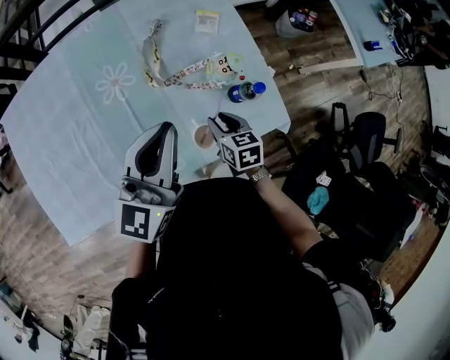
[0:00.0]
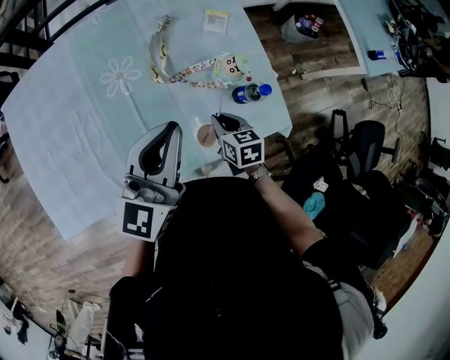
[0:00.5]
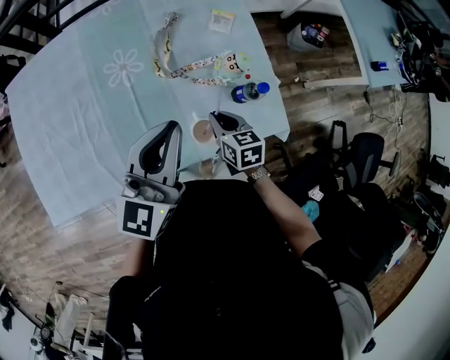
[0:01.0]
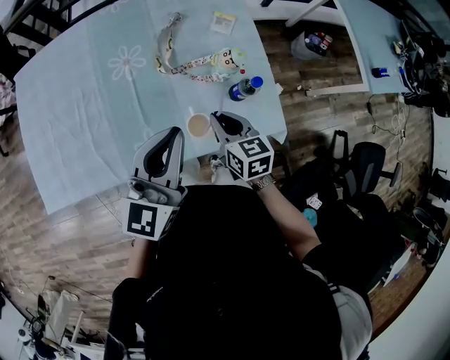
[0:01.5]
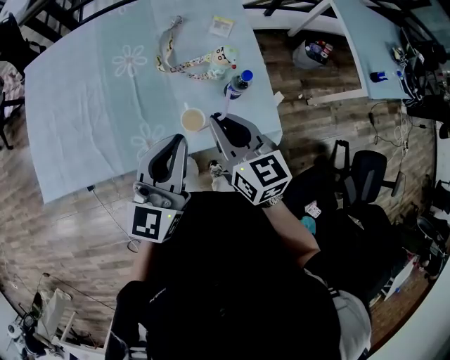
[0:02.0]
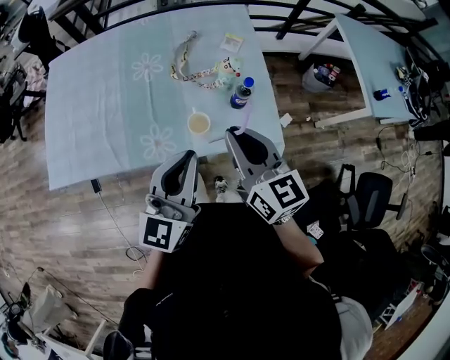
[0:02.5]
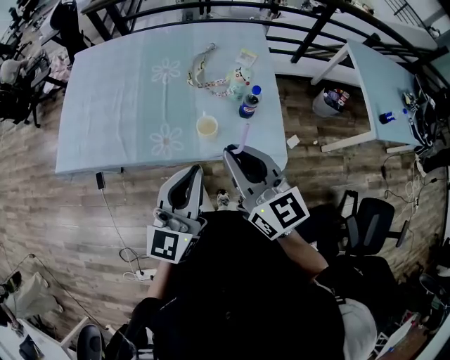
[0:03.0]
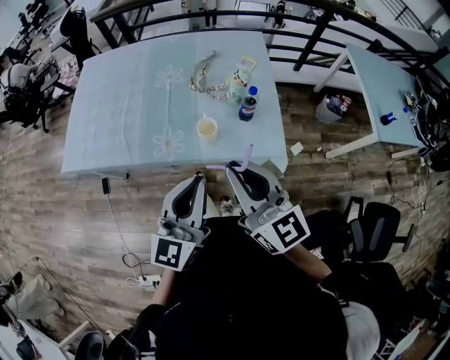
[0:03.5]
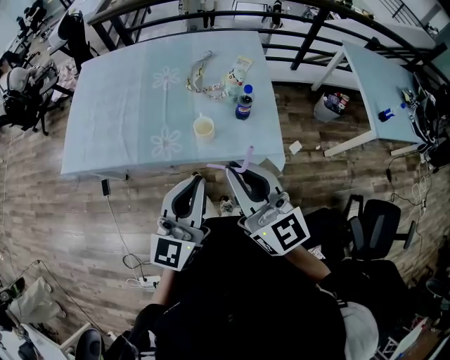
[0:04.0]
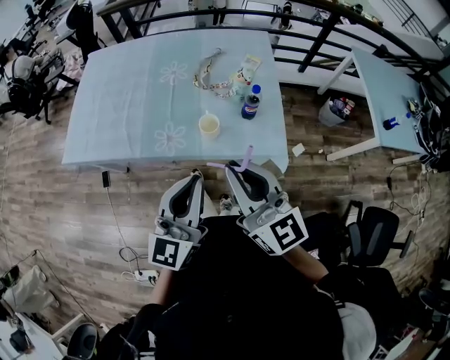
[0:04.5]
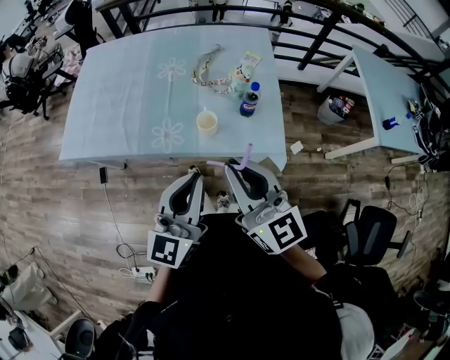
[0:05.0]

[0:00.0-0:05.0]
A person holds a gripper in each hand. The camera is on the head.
0:00.0 to 0:02.5: The right gripper heads upward and backward, covering about 30 cm, tilts its fingers some 40 degrees upward, and closes up; the left gripper goes some 20 cm backward.
0:02.5 to 0:05.0: Both grippers travel together backward, some 15 cm. The right gripper turns by approximately 20 degrees.

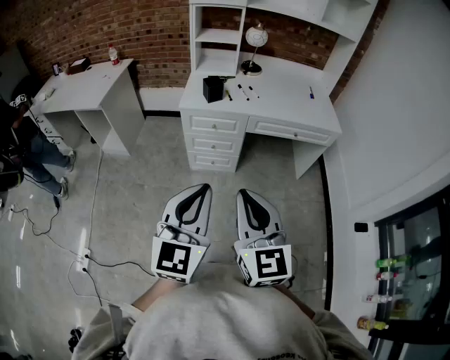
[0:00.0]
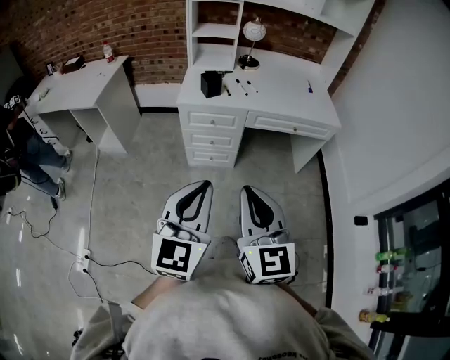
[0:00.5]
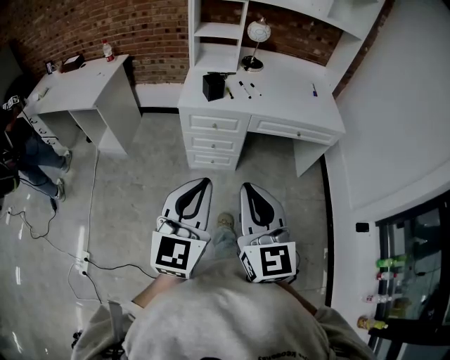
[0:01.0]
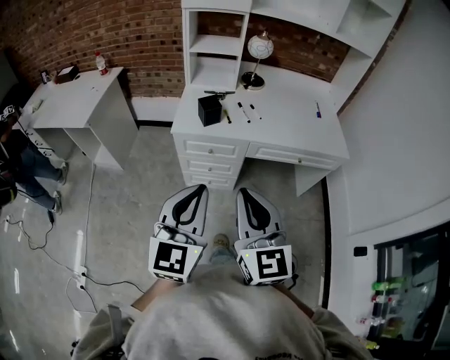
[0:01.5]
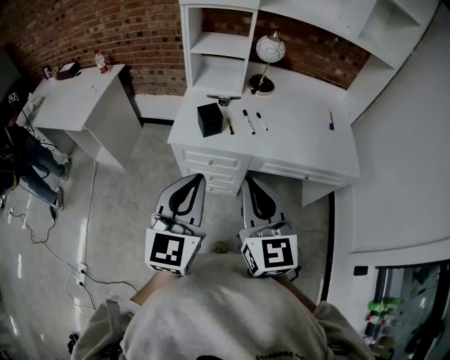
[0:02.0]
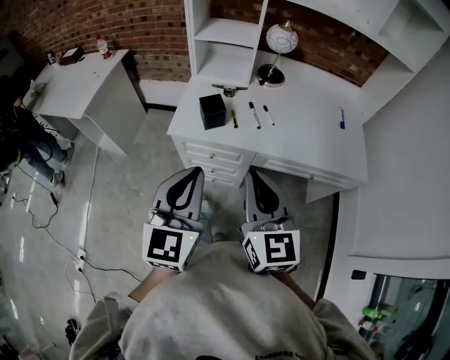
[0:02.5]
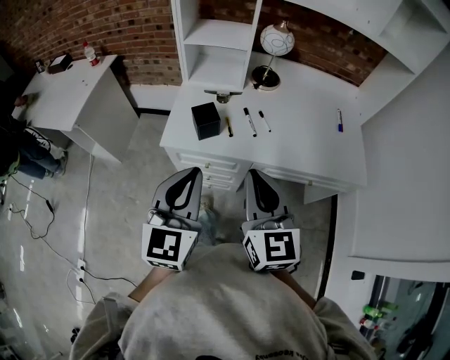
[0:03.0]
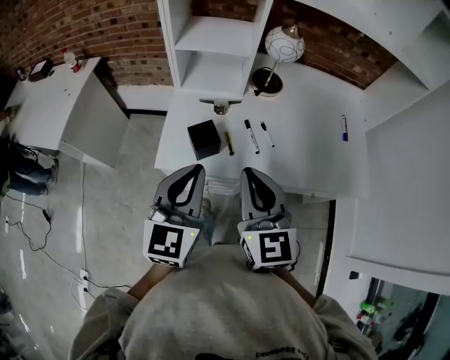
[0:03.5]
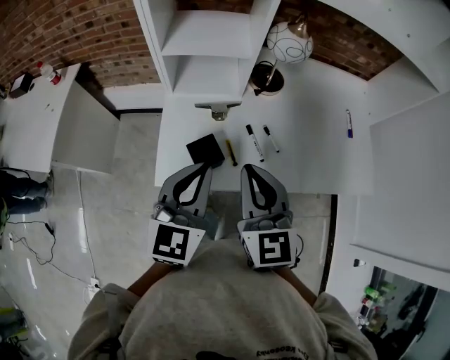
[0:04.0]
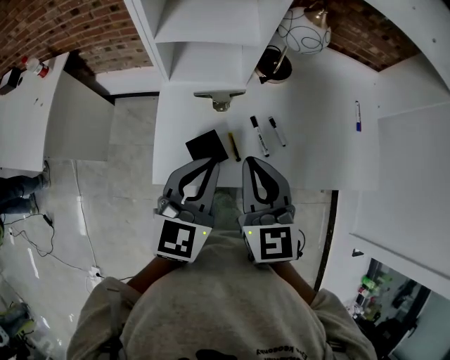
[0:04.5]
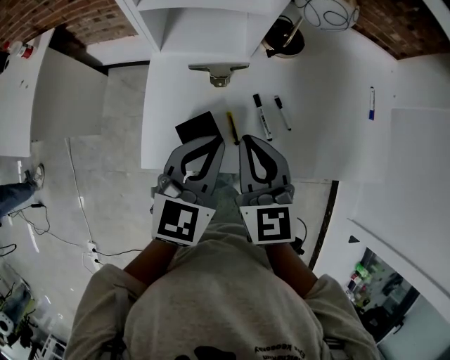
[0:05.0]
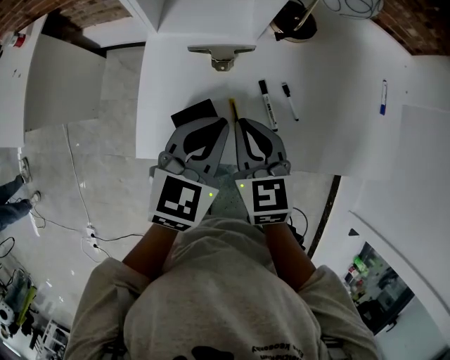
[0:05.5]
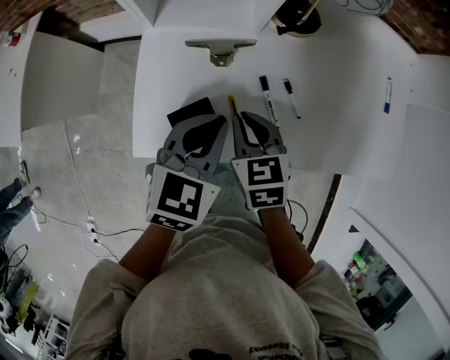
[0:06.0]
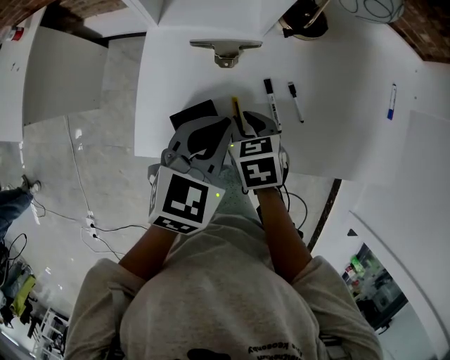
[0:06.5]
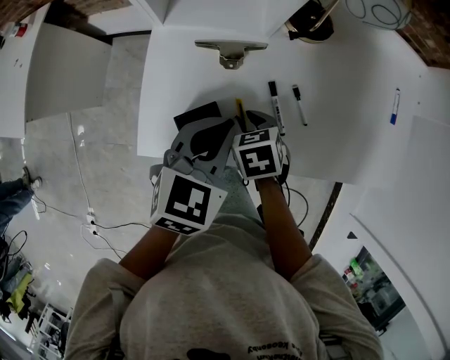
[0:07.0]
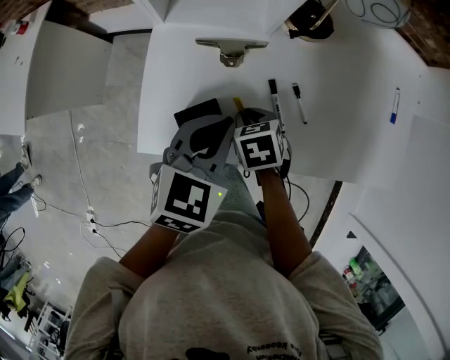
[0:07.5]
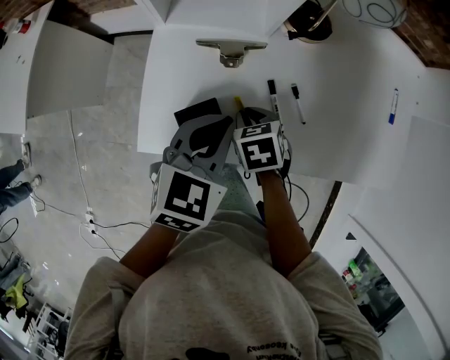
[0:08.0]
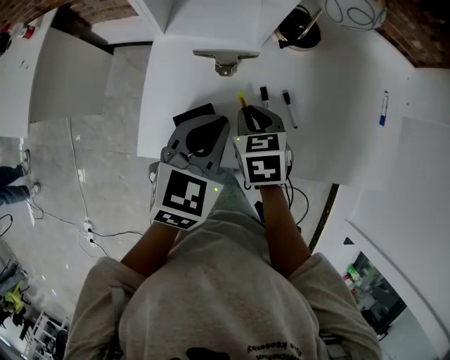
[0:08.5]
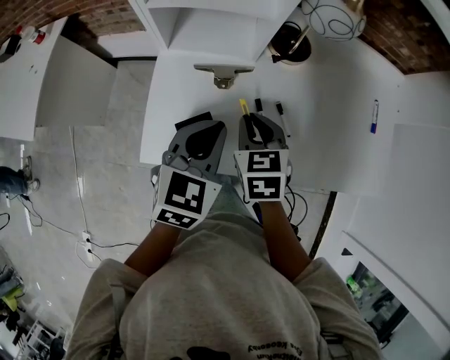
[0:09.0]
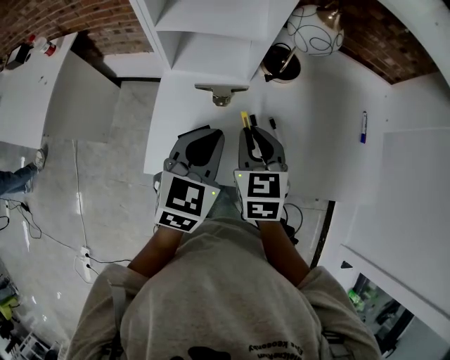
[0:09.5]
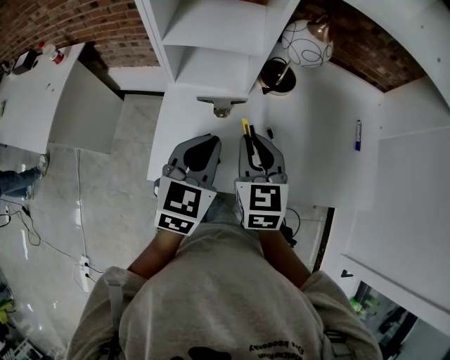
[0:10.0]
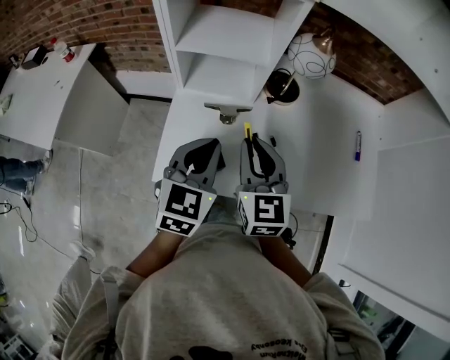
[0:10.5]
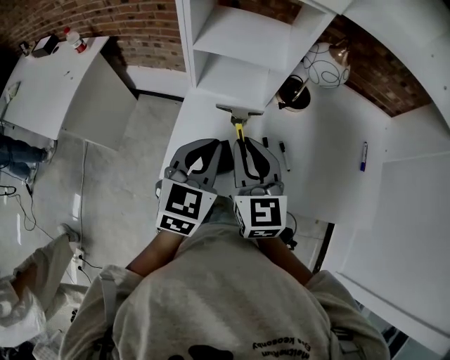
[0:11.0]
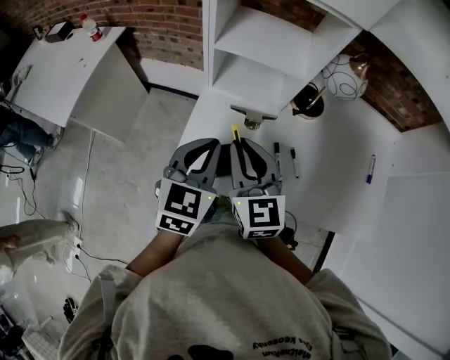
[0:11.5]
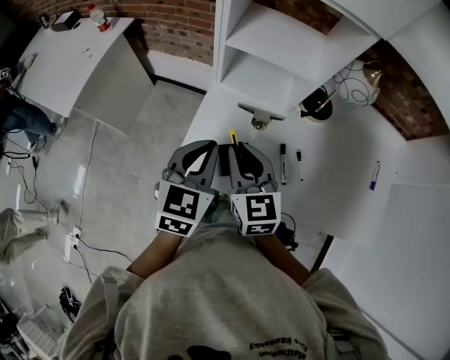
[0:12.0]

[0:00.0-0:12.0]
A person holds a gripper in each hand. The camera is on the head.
0:00.0 to 0:02.0: Both grippers move forward, roughly 35 cm.
0:02.0 to 0:04.0: Both grippers move forward, some 30 cm.
0:04.0 to 0:06.0: The grippers both shift downward and forward by some 20 cm. The left gripper rotates some 20 degrees, while the right gripper points its fingers roughly 30 degrees further downward.
0:06.0 to 0:08.0: The right gripper heads downward, covering roughly 5 cm, and turns by about 20 degrees.
0:08.0 to 0:10.0: The right gripper is displaced upward by approximately 20 cm, and tilts its fingers some 40 degrees upward, while the left gripper heads upward, covering approximately 10 cm.
0:10.0 to 0:12.0: The two grippers go roughly 10 cm to the left. The right gripper changes its angle by roughly 20 degrees.

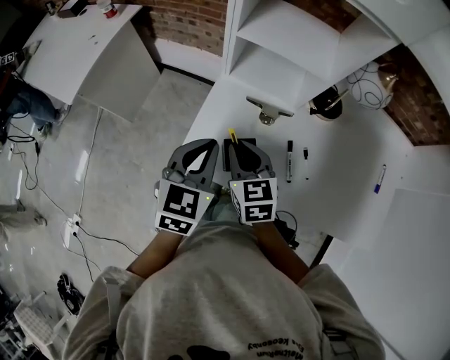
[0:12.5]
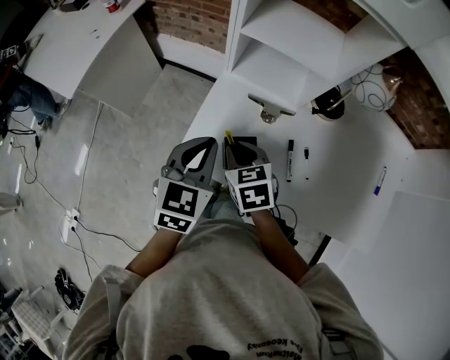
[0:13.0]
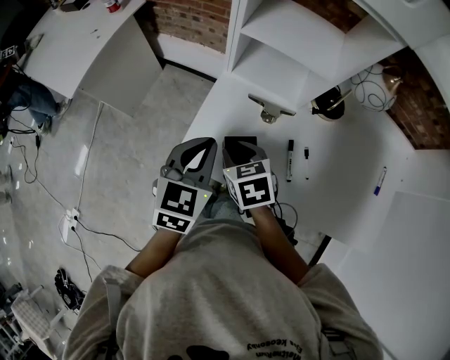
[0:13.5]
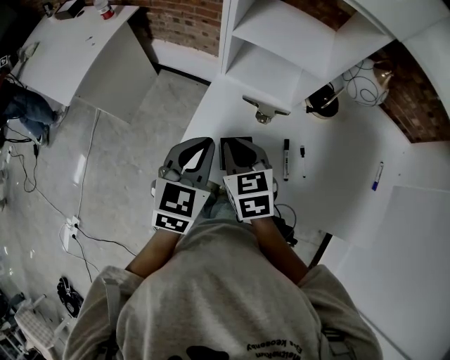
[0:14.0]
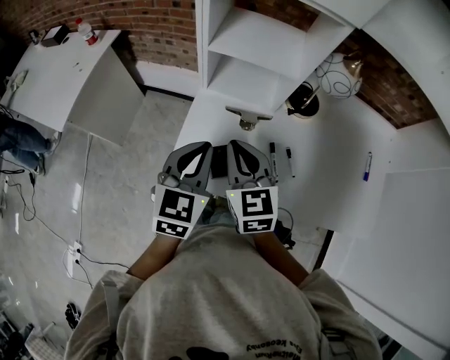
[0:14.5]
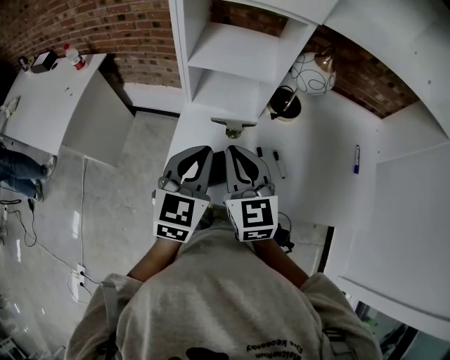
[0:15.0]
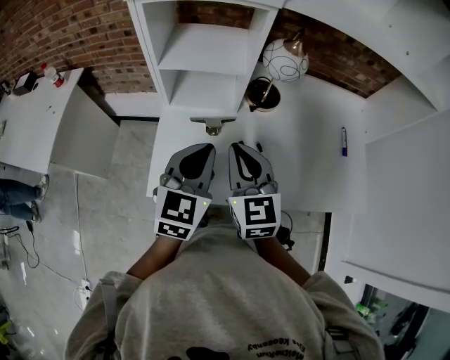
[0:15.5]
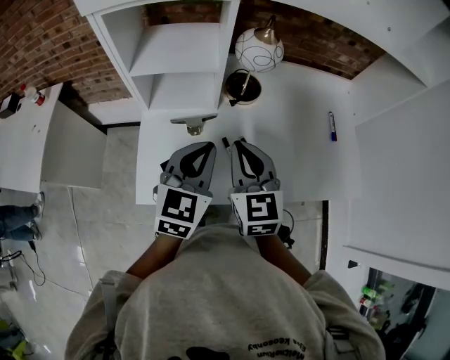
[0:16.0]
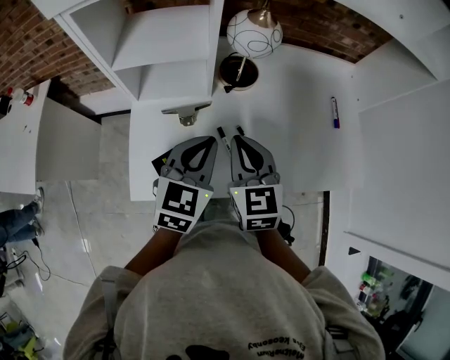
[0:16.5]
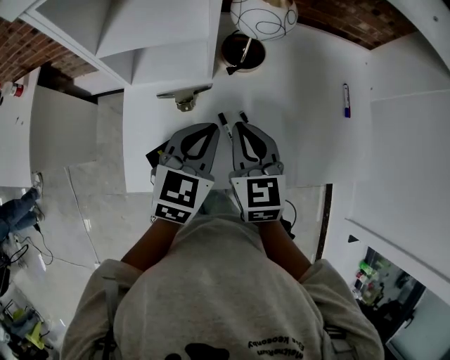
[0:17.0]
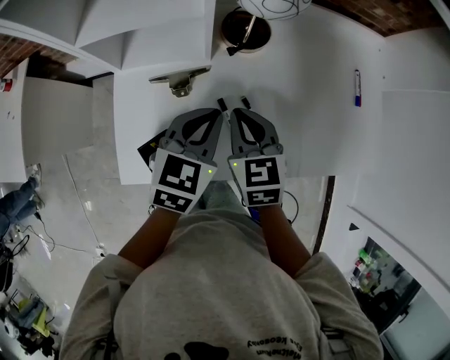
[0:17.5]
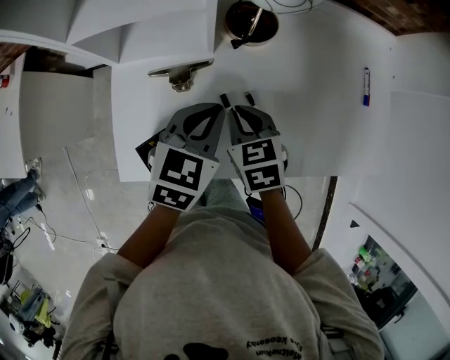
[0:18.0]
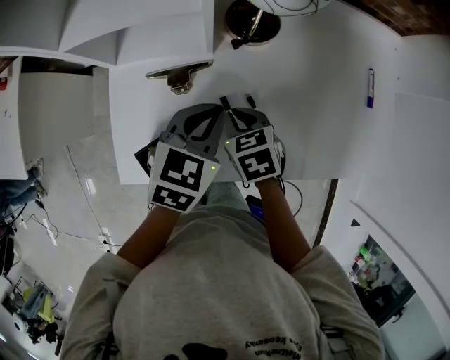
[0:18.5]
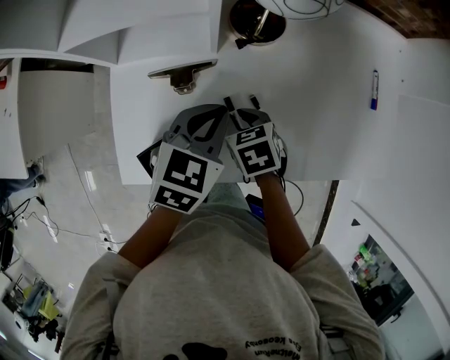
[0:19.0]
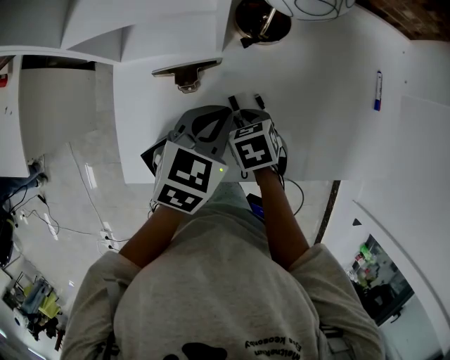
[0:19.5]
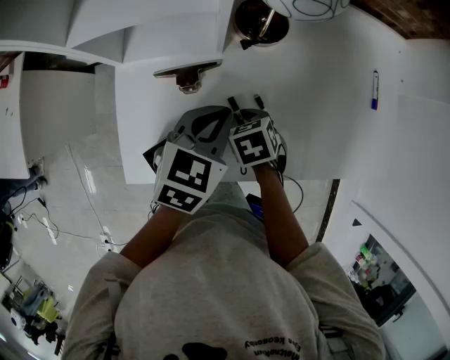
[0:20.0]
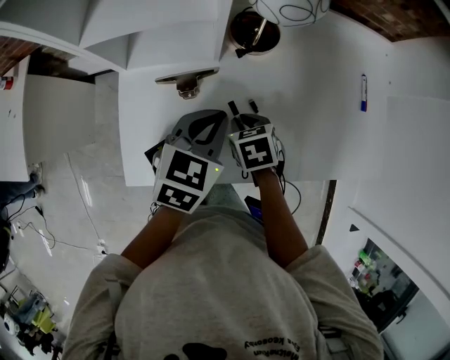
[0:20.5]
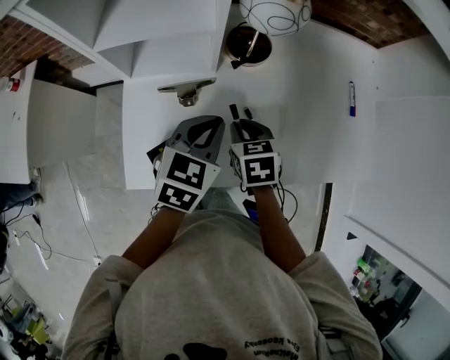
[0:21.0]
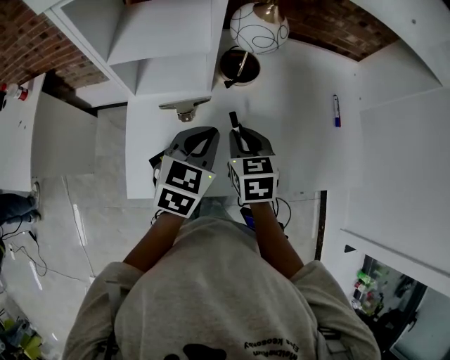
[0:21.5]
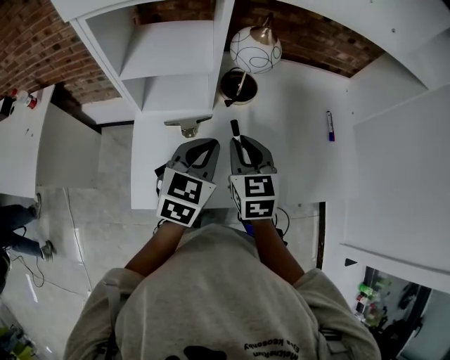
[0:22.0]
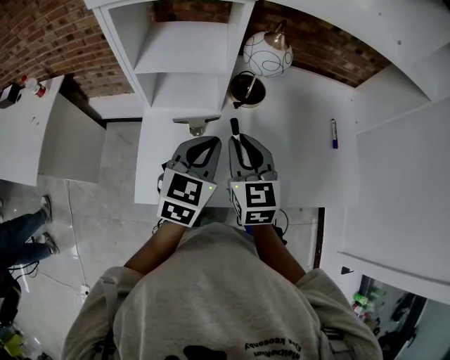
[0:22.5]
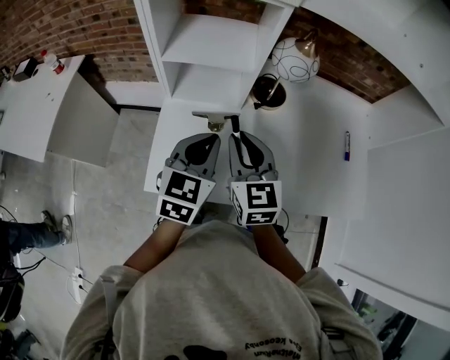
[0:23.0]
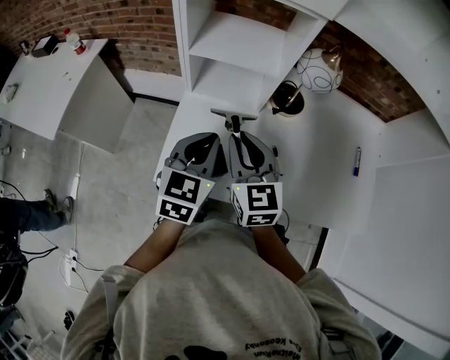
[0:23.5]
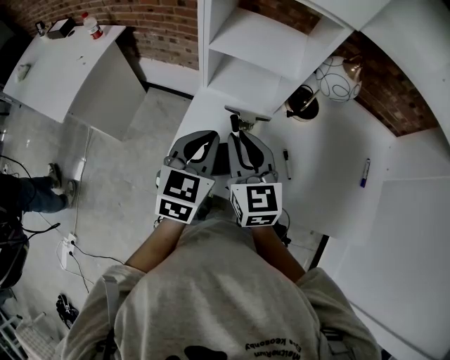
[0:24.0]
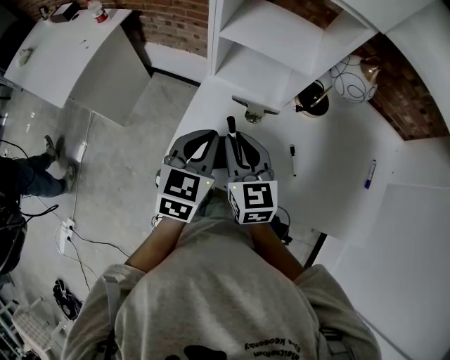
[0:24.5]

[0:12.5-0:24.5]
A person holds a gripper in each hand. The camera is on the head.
0:12.5 to 0:14.5: The right gripper goes about 10 cm upward.
0:14.5 to 0:16.5: Both grippers travel together to the right, roughly 15 cm. The right gripper changes its angle by about 20 degrees. Meanwhile the left gripper changes its angle by about 20 degrees.
0:16.5 to 0:18.5: The left gripper shifts roughly 15 cm downward and forward, while the right gripper goes roughly 20 cm downward, and points its fingers approximately 40 degrees further downward.
0:18.5 to 0:20.5: The grippers stay close to where they were, moving slightly.
0:20.5 to 0:22.5: The left gripper goes roughly 10 cm upward. Meanwhile the right gripper moves upward, some 25 cm, and points its fingers some 50 degrees further upward.
0:22.5 to 0:24.5: The two grippers go roughly 15 cm to the left. The right gripper swivels approximately 20 degrees. The left gripper swivels about 20 degrees.
